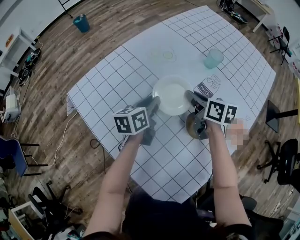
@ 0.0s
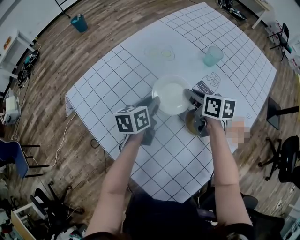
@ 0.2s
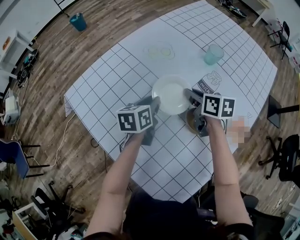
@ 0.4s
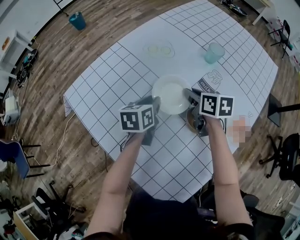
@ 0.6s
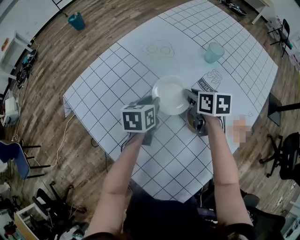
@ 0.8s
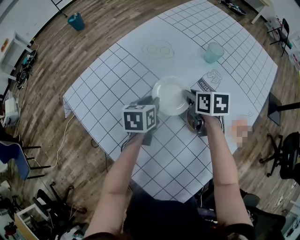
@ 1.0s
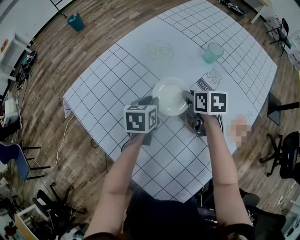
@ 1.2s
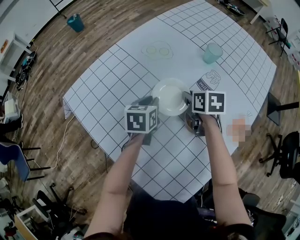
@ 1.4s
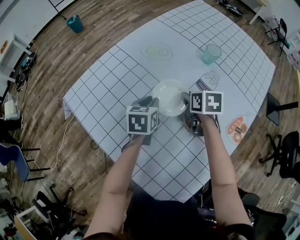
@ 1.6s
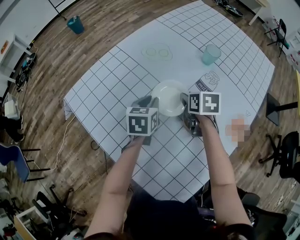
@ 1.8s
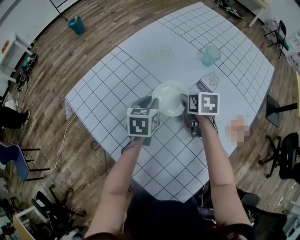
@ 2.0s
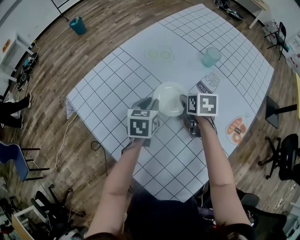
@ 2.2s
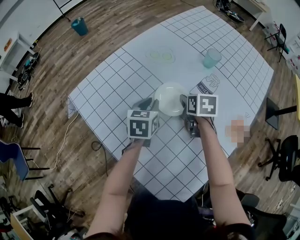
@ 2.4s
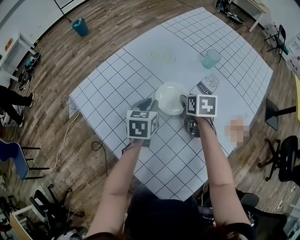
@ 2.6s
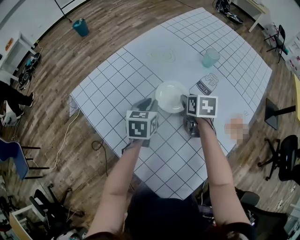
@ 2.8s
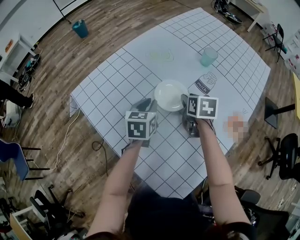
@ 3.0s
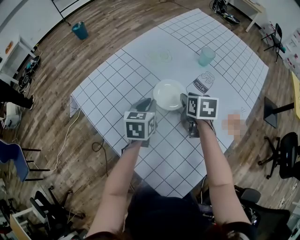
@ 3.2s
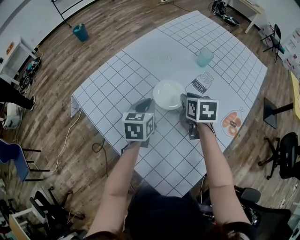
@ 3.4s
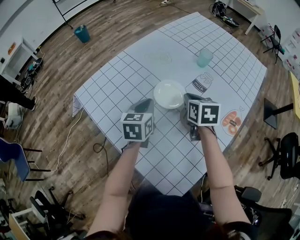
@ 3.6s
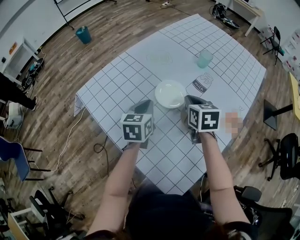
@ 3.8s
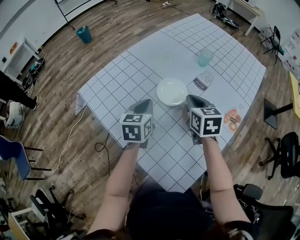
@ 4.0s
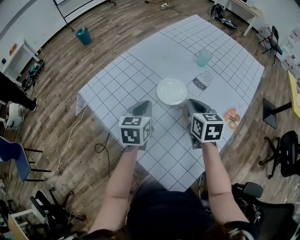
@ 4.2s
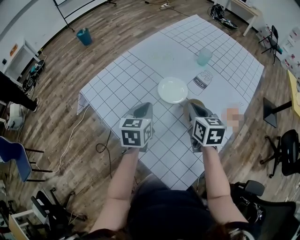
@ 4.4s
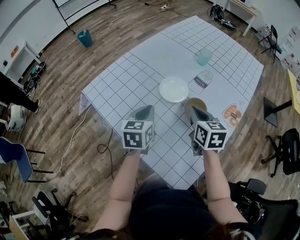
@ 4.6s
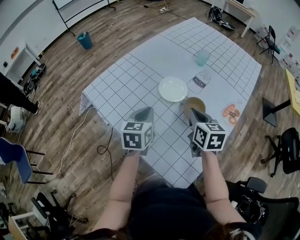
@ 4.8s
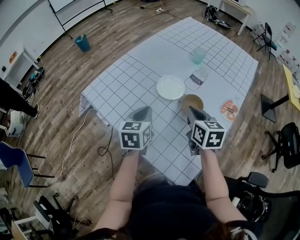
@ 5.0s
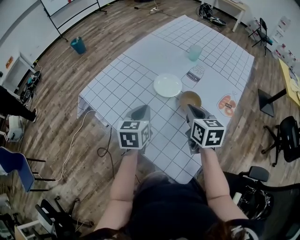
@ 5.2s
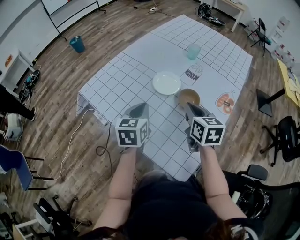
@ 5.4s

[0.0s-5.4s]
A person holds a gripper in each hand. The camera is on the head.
0.0s to 1.4s: The left gripper changes its angle by approximately 20 degrees; the right gripper is displaced downward by approximately 5 cm, and swivels roughly 20 degrees.
1.4s to 2.8s: The left gripper moves some 5 cm.
2.8s to 4.0s: Both grippers move upward and backward, roughly 10 cm. The right gripper changes its angle by some 20 degrees, and closes.
4.0s to 5.4s: Both grippers move backward, some 10 cm.

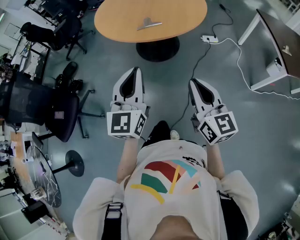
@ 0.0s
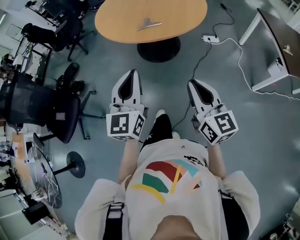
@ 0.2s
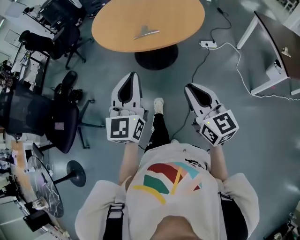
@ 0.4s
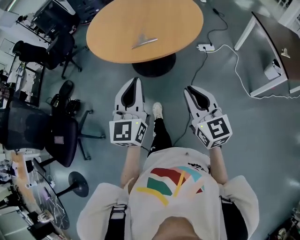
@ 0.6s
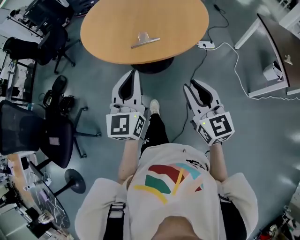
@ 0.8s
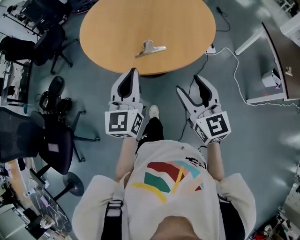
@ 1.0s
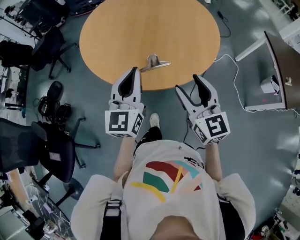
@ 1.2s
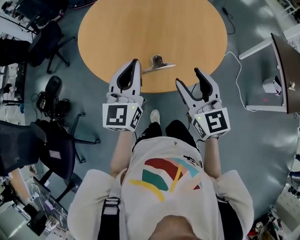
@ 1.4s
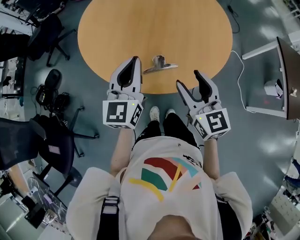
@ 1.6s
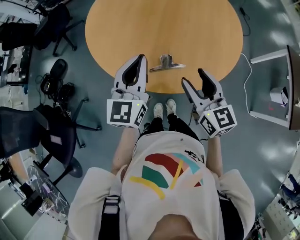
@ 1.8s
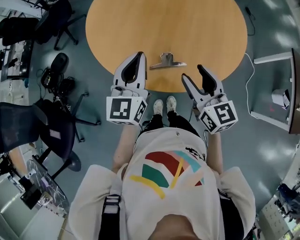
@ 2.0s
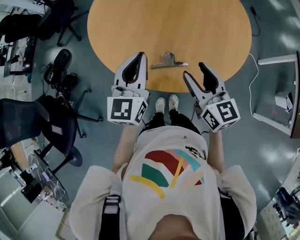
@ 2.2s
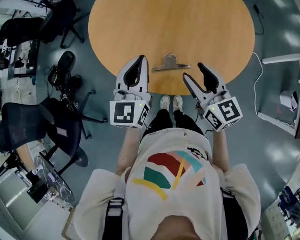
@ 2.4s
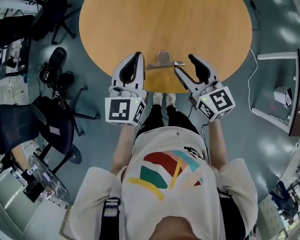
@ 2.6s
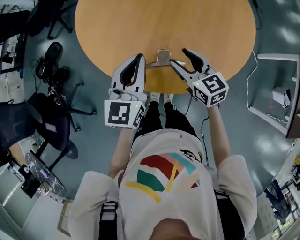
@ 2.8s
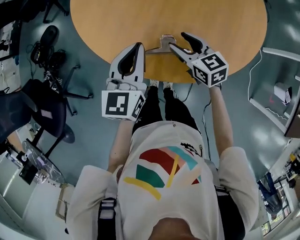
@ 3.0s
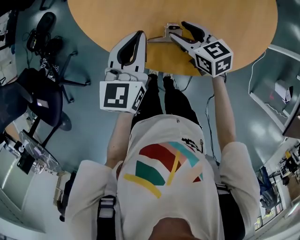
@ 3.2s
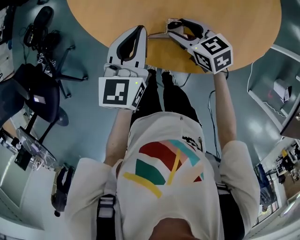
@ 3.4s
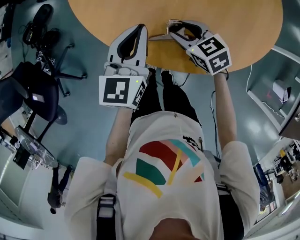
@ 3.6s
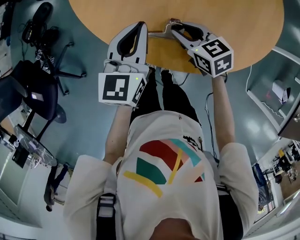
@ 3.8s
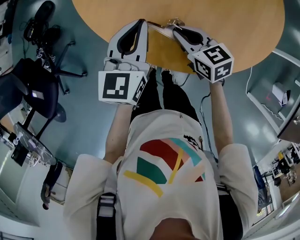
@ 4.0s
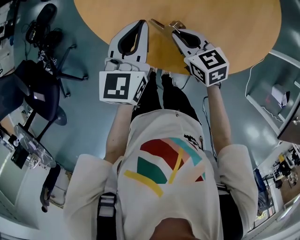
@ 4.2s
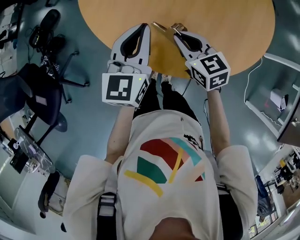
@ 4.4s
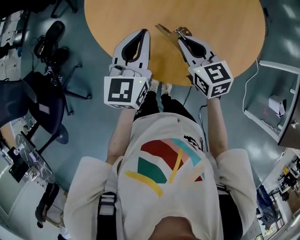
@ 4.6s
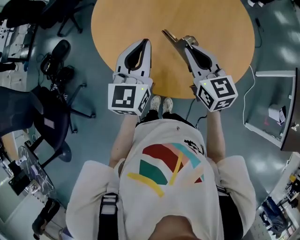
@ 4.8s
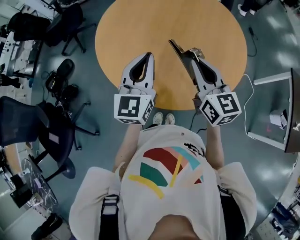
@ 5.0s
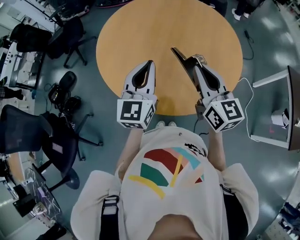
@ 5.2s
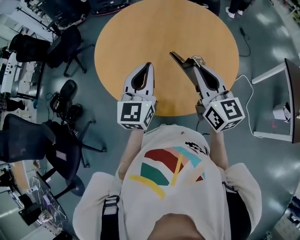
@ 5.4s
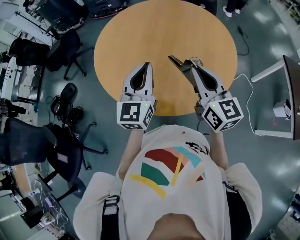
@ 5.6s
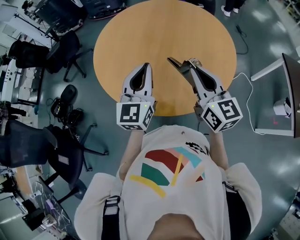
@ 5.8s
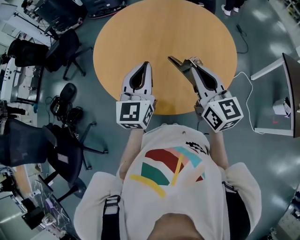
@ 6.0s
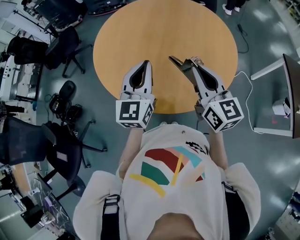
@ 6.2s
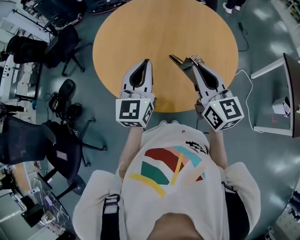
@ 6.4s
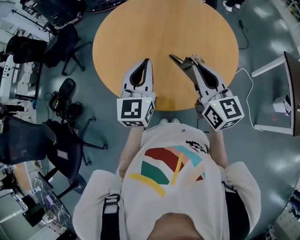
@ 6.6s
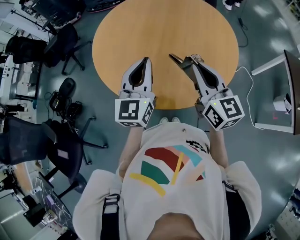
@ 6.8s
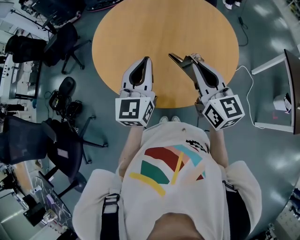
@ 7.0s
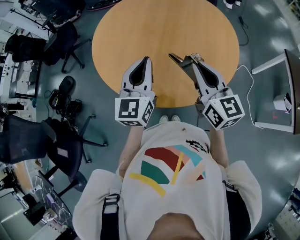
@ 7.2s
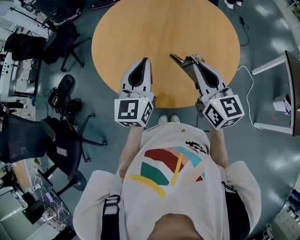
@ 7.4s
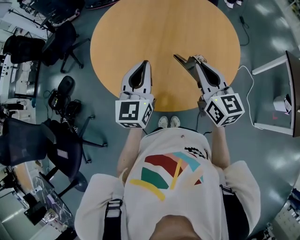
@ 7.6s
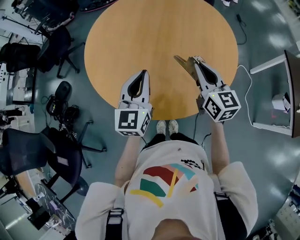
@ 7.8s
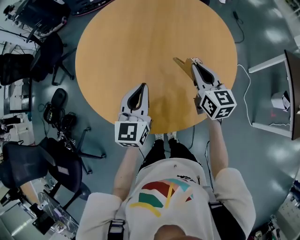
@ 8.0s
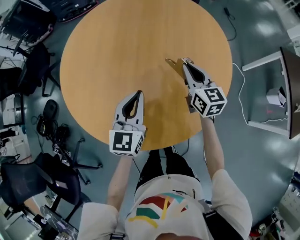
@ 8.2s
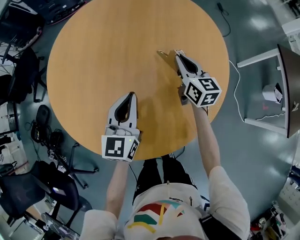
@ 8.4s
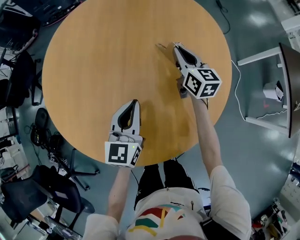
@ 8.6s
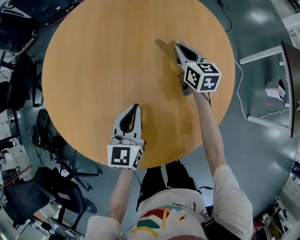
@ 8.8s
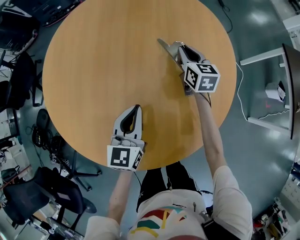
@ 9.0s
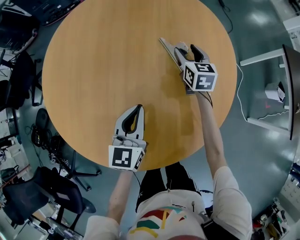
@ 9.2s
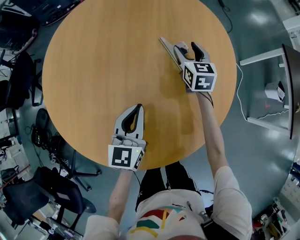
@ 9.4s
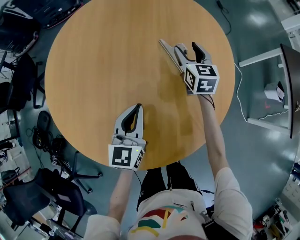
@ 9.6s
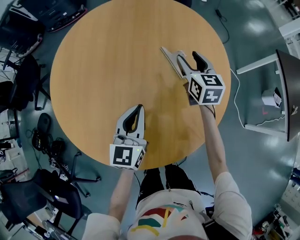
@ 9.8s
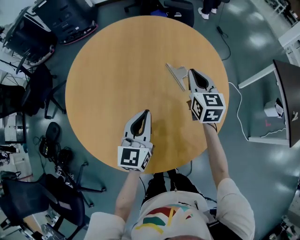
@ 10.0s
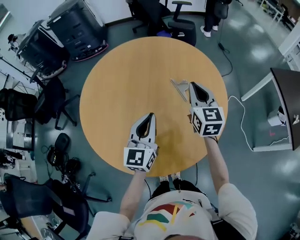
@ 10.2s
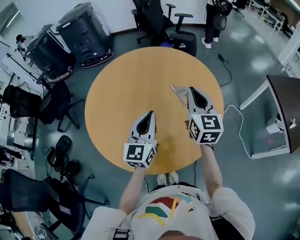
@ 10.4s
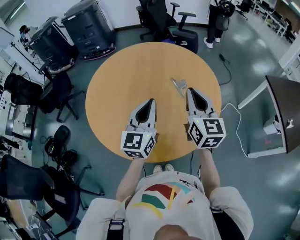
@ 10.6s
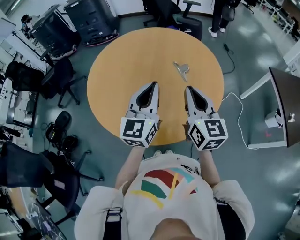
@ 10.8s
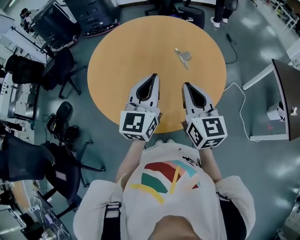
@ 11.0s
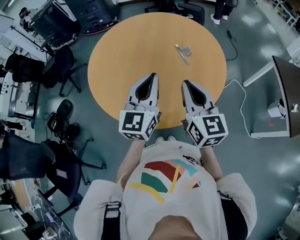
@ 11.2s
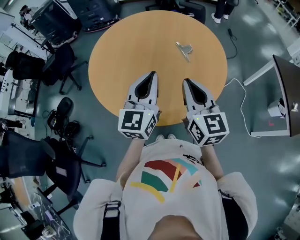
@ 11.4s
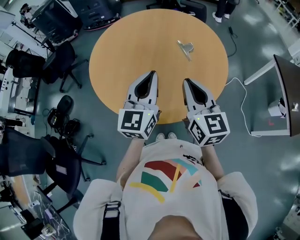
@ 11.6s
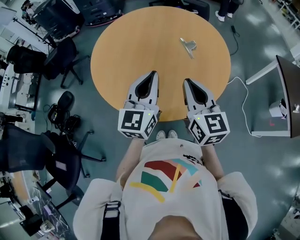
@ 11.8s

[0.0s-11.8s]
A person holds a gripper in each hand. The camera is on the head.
0.0s to 1.4s: The two grippers travel together, forward, some 50 cm. The right gripper opens.
1.4s to 3.0s: The left gripper travels downward and forward by about 15 cm, and rotates roughly 20 degrees. Meanwhile the right gripper goes roughly 30 cm downward and forward, and rotates approximately 40 degrees.
3.0s to 4.4s: The right gripper goes roughly 5 cm to the left, travels downward and back again, some 5 cm each way, and closes up.
4.4s to 6.0s: The right gripper goes approximately 30 cm upward and to the right, and rotates approximately 40 degrees; the left gripper is displaced upward and backward by approximately 15 cm.
6.0s to 7.4s: The grippers stay close to where they were, moving slightly.
7.4s to 8.8s: The right gripper heads forward and downward, covering approximately 50 cm, and turns by some 20 degrees, while the left gripper travels downward, forward and to the right by about 35 cm, and turns by some 20 degrees.
8.8s to 10.4s: The right gripper is displaced upward and backward by about 40 cm, swivels approximately 20 degrees, and opens and closes again; the left gripper heads upward and backward, covering about 25 cm.
10.4s to 11.8s: The left gripper moves backward, about 15 cm; the right gripper shifts about 20 cm backward.

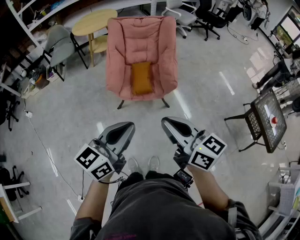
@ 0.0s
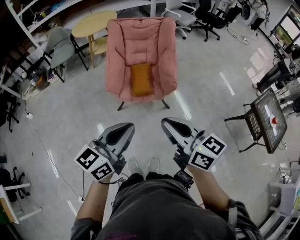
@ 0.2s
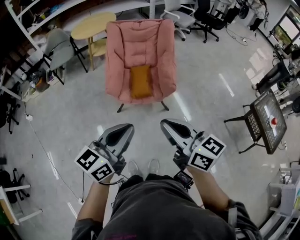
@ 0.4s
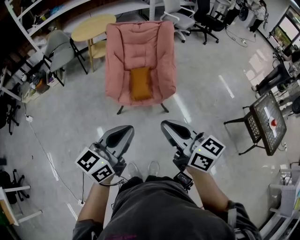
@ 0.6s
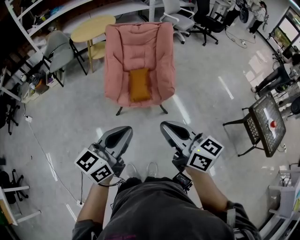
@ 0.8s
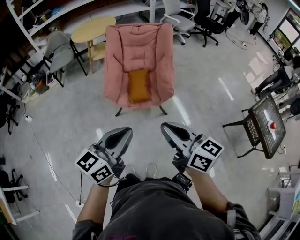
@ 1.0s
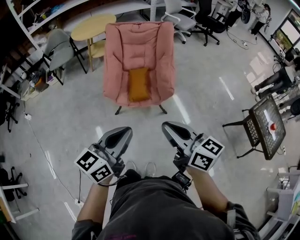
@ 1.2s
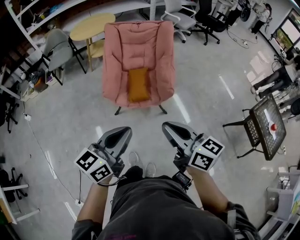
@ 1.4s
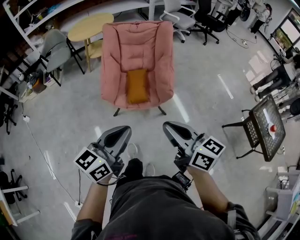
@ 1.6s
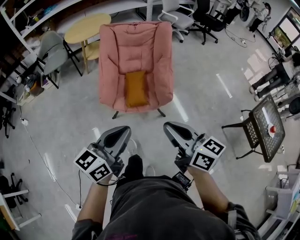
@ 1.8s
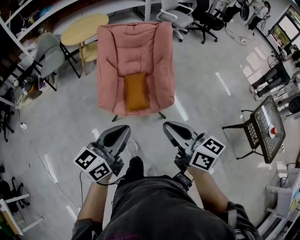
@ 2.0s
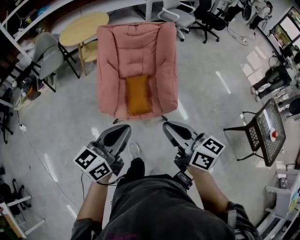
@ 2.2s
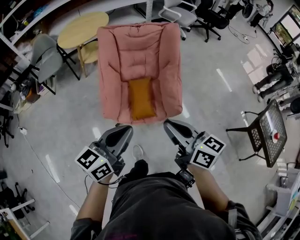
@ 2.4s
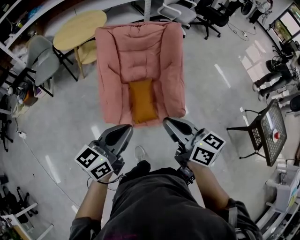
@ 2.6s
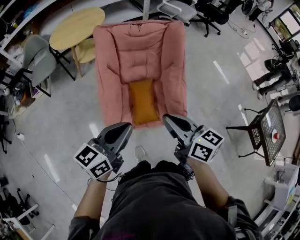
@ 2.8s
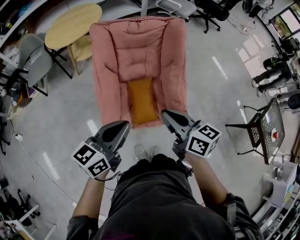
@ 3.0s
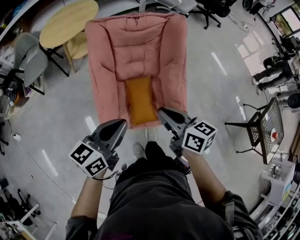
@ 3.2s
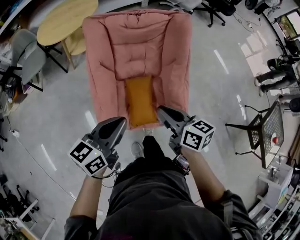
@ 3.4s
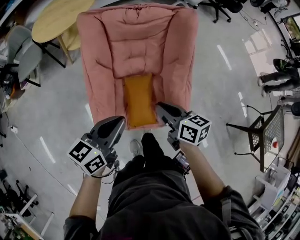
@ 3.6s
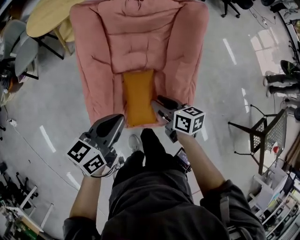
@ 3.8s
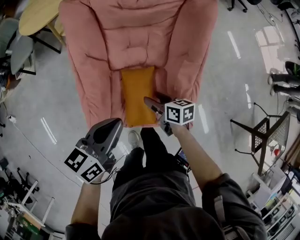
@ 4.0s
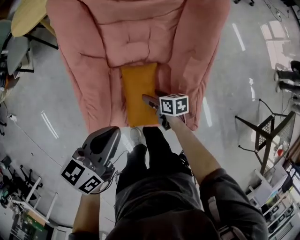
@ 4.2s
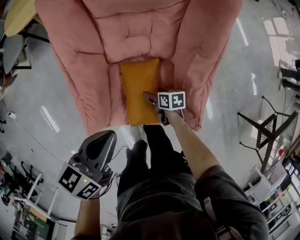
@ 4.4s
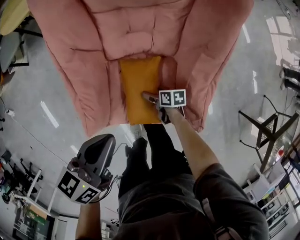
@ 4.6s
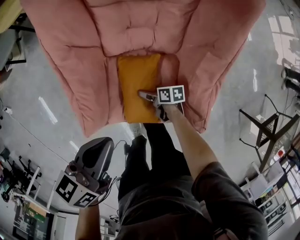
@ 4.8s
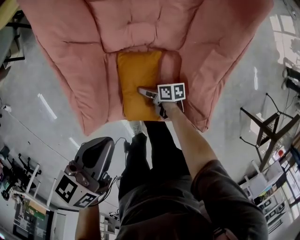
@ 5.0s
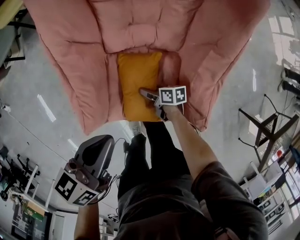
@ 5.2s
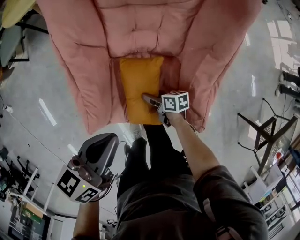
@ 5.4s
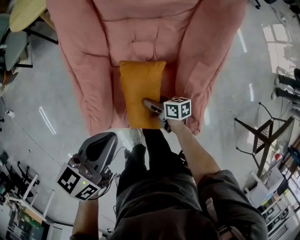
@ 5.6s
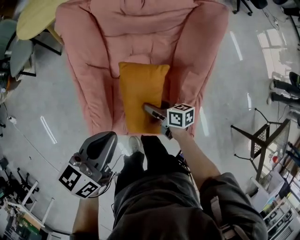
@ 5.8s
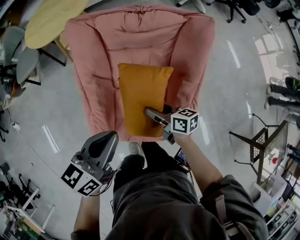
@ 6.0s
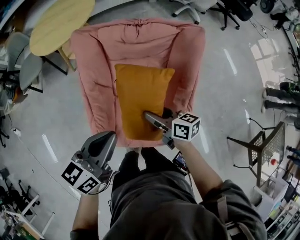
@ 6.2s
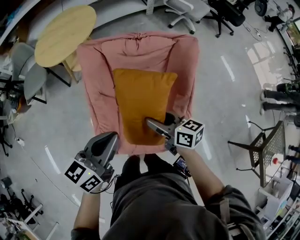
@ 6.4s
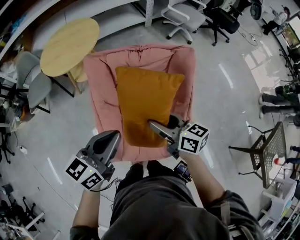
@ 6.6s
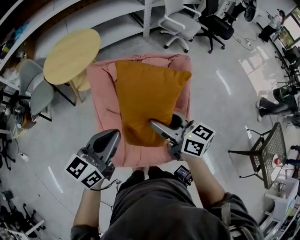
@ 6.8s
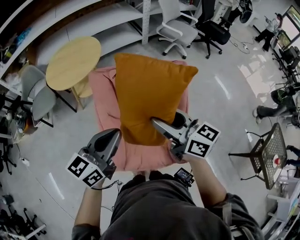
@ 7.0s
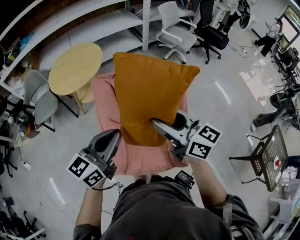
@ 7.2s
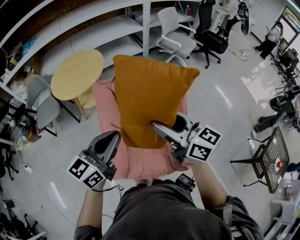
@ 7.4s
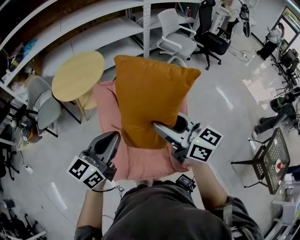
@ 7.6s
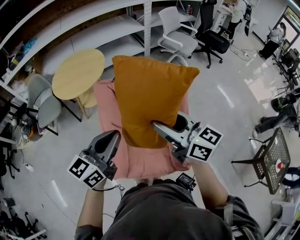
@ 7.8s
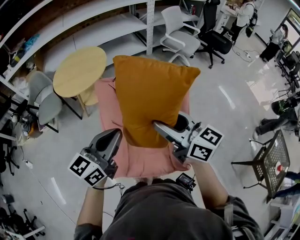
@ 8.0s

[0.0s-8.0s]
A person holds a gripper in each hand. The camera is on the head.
0.0s to 1.6s: The grippers both shift forward by some 5 cm.
1.6s to 3.2s: The grippers both shift forward by about 35 cm.
3.2s to 4.8s: The left gripper is displaced downward and forward by approximately 20 cm, and turns by about 30 degrees, while the right gripper heads downward, covering approximately 50 cm, rotates some 50 degrees, and opens up.
4.8s to 6.4s: The left gripper moves upward, about 20 cm, and changes its angle by some 20 degrees; the right gripper heads upward, covering some 40 cm, and turns by roughly 40 degrees.
6.4s to 8.0s: The right gripper goes some 25 cm upward, and changes its angle by some 30 degrees. The left gripper moves upward, roughly 10 cm.
